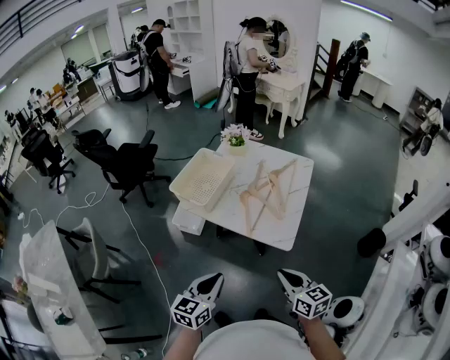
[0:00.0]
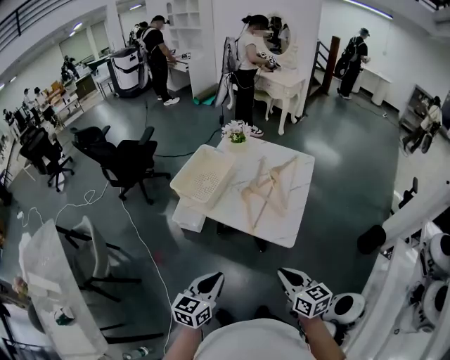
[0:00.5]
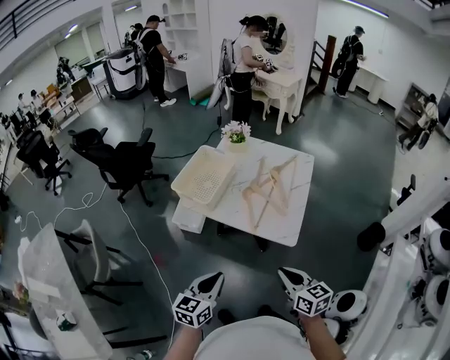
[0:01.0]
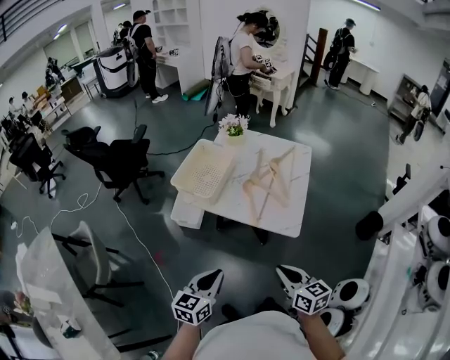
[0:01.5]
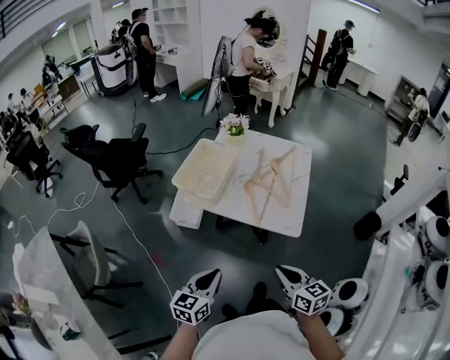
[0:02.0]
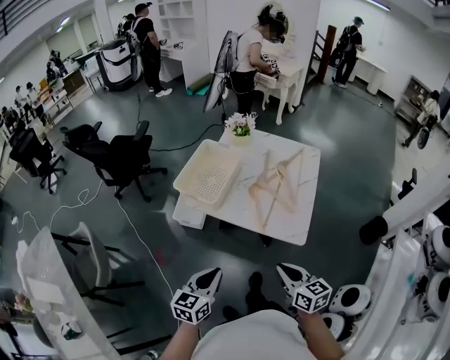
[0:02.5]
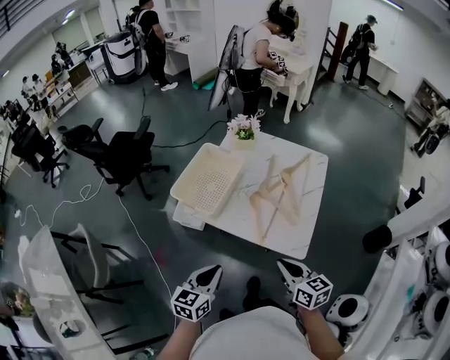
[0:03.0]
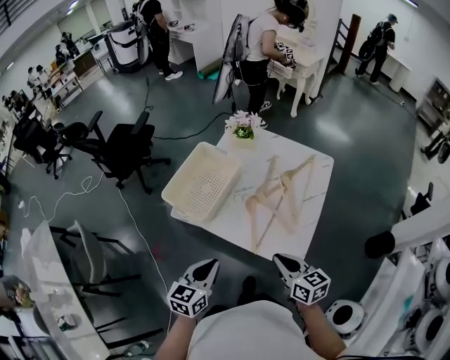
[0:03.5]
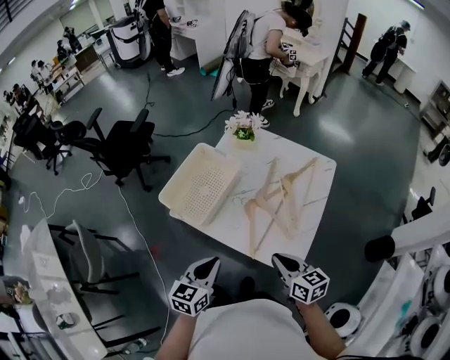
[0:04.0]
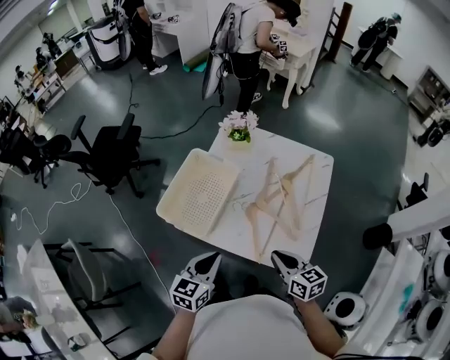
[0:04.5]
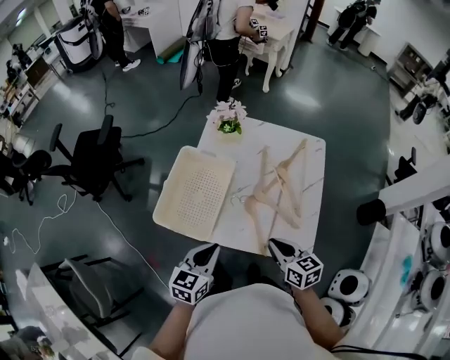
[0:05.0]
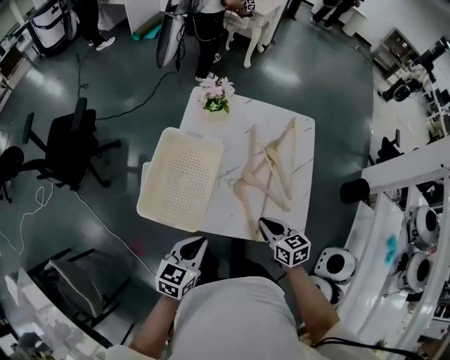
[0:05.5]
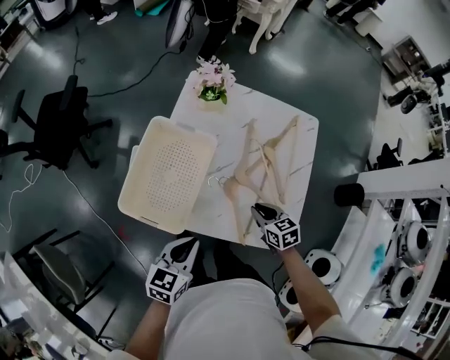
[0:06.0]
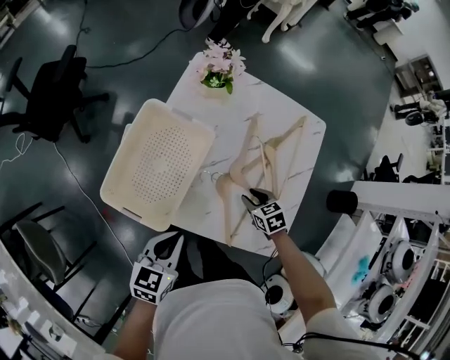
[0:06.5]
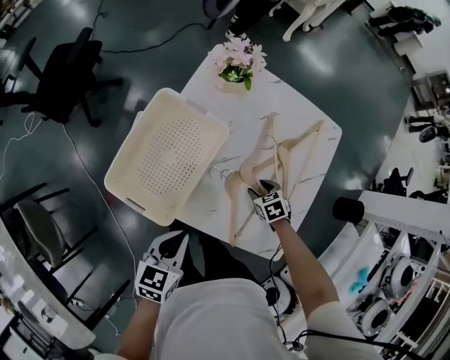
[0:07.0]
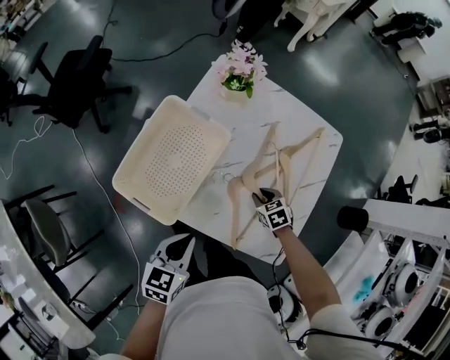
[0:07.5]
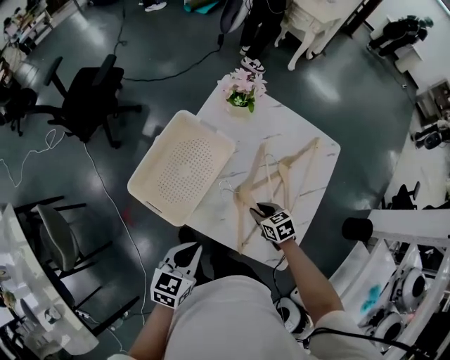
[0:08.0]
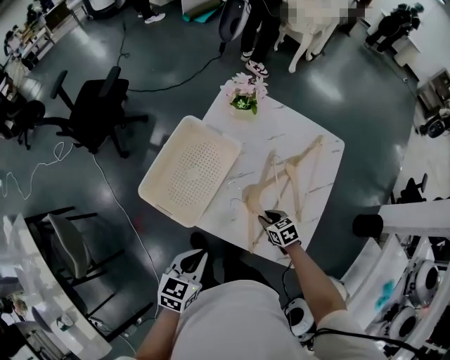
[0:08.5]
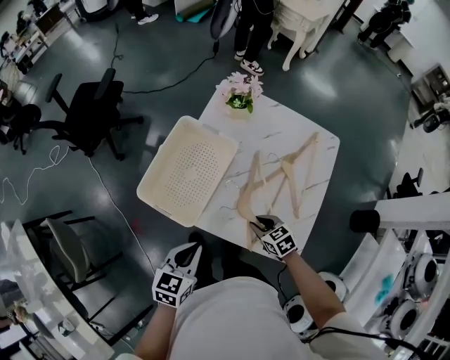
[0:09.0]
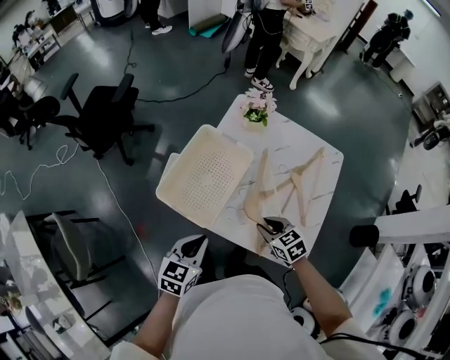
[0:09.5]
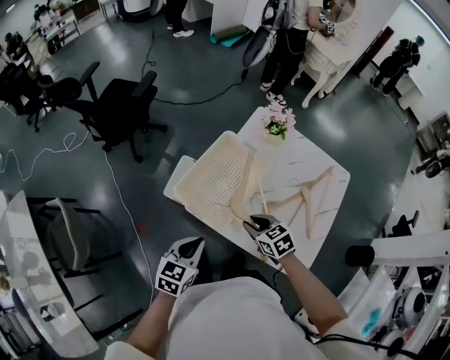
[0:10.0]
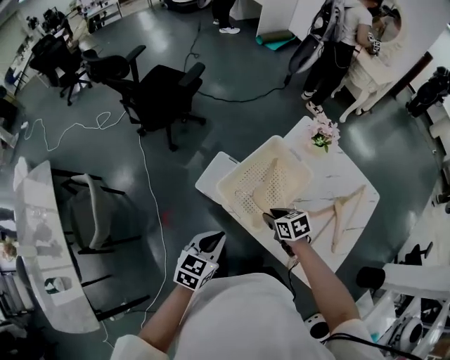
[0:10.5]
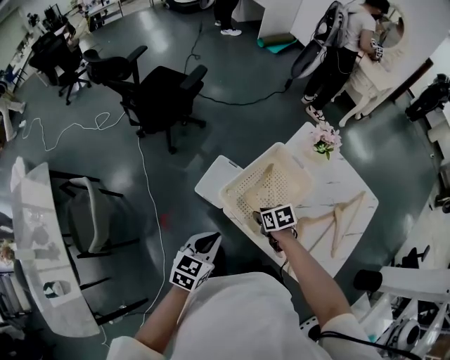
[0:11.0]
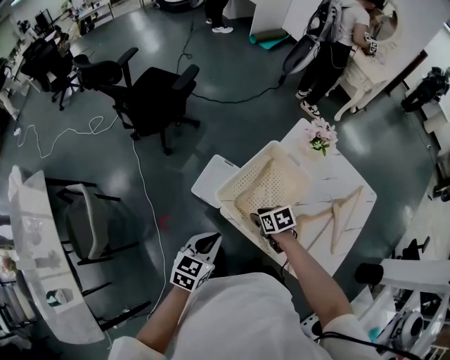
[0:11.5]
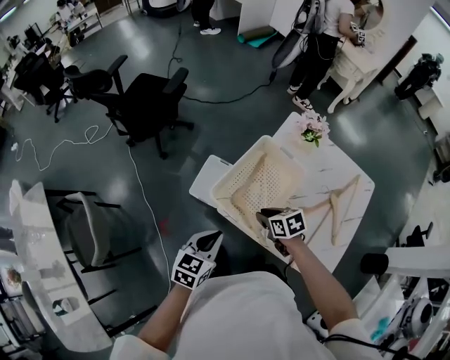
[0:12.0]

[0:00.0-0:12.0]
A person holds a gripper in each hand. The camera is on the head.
0:00.0 to 0:02.0: The two grippers go some 10 cm to the left.
0:02.0 to 0:04.0: The grippers both shift forward by roughly 25 cm.
0:04.0 to 0:06.0: The right gripper is displaced forward and downward by some 25 cm, and turns by approximately 20 degrees, while the left gripper is displaced forward, downward and to the left by approximately 15 cm, and rotates some 20 degrees.
0:06.0 to 0:08.0: The right gripper shifts approximately 5 cm downward, turns by about 20 degrees, and opens and closes again.
0:08.0 to 0:10.0: The left gripper shifts about 15 cm to the left; the right gripper travels to the left and upward by approximately 20 cm.
0:10.0 to 0:12.0: The left gripper moves to the left, about 5 cm, while the right gripper shifts approximately 10 cm to the left and forward.

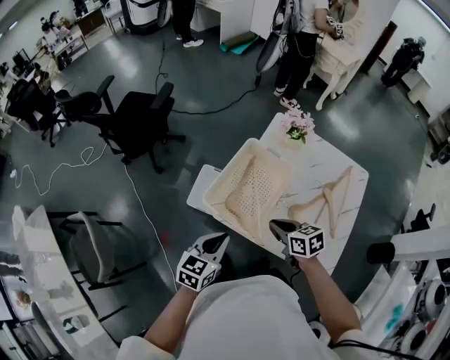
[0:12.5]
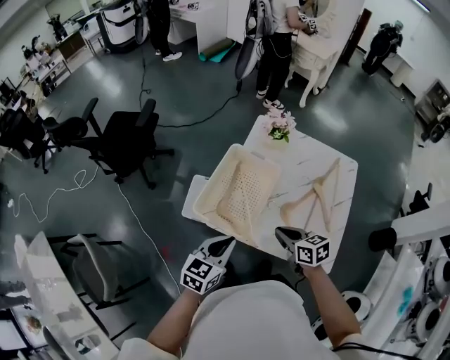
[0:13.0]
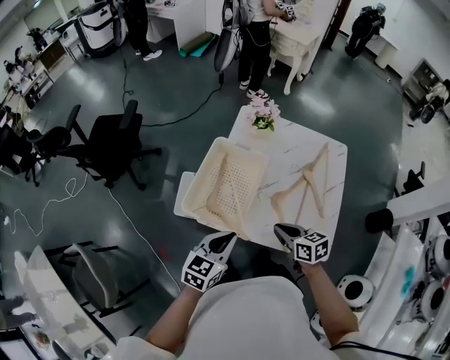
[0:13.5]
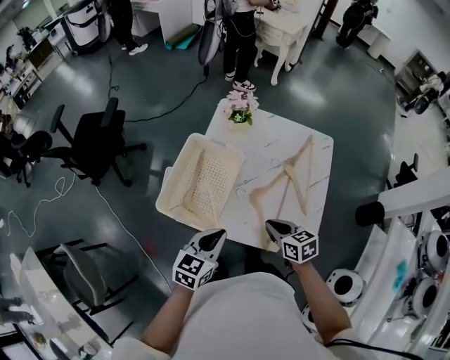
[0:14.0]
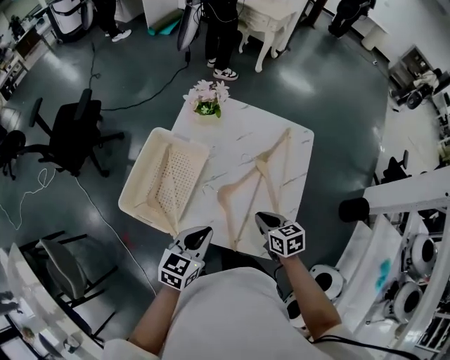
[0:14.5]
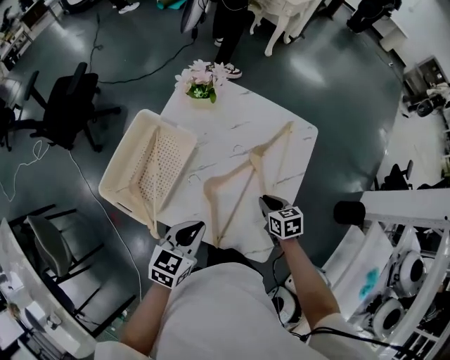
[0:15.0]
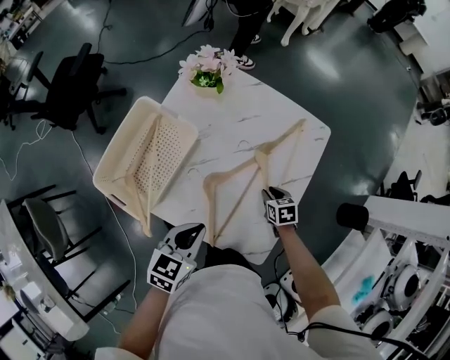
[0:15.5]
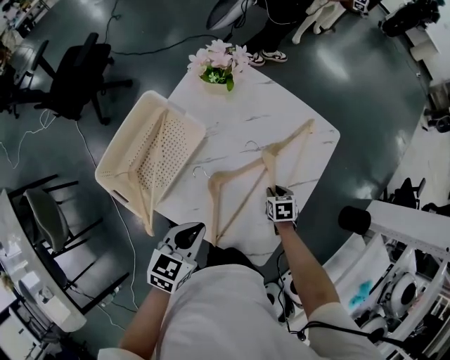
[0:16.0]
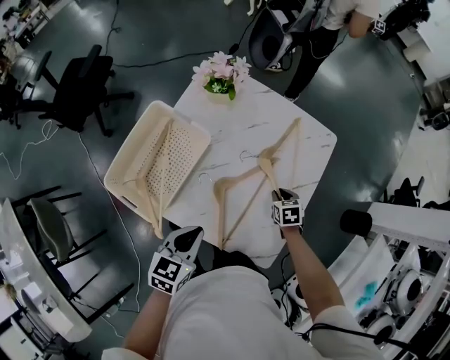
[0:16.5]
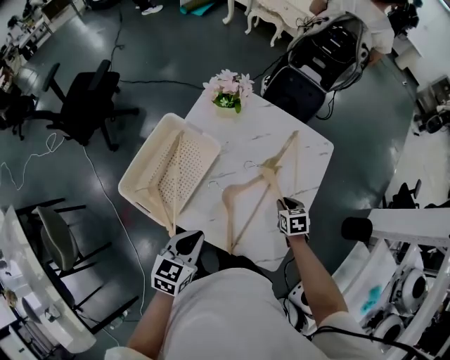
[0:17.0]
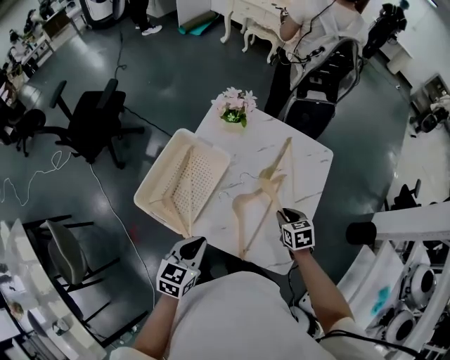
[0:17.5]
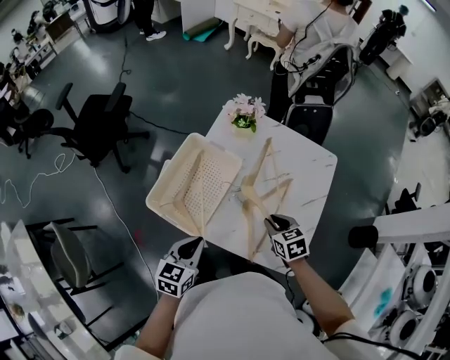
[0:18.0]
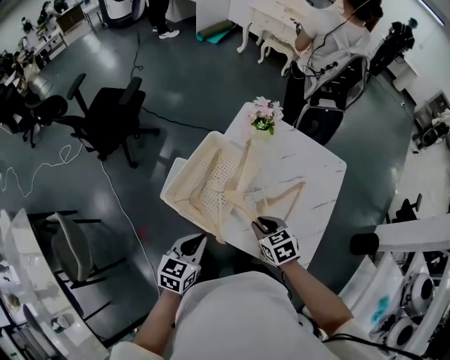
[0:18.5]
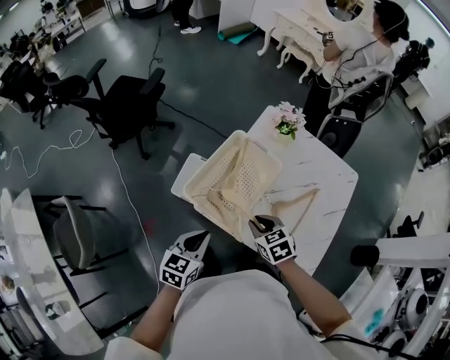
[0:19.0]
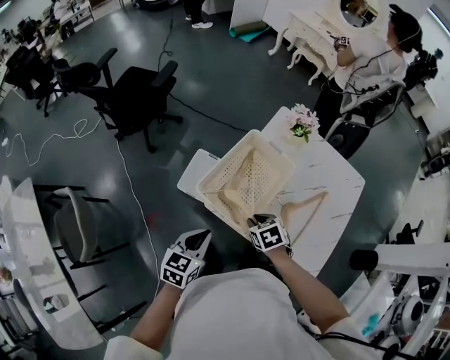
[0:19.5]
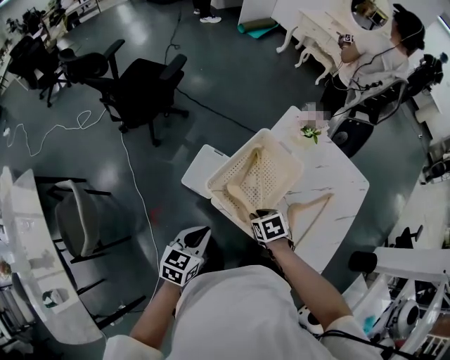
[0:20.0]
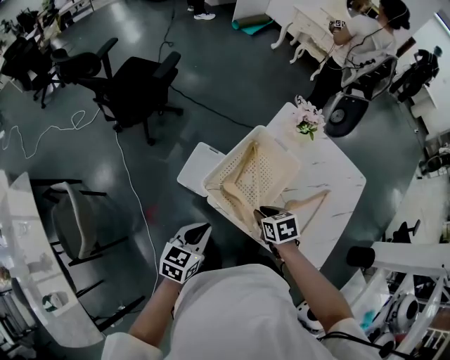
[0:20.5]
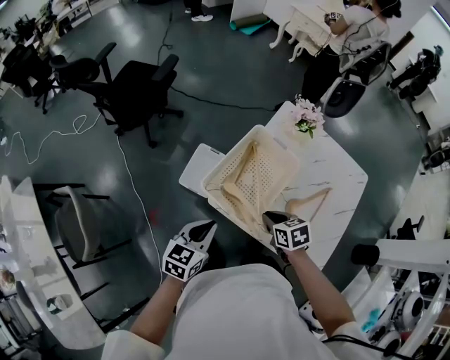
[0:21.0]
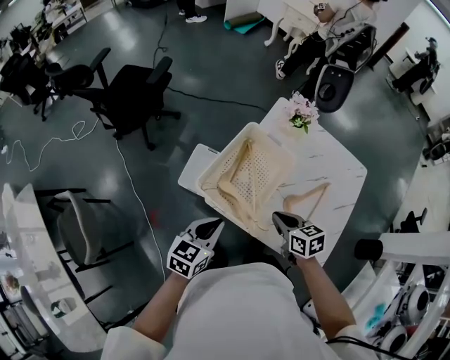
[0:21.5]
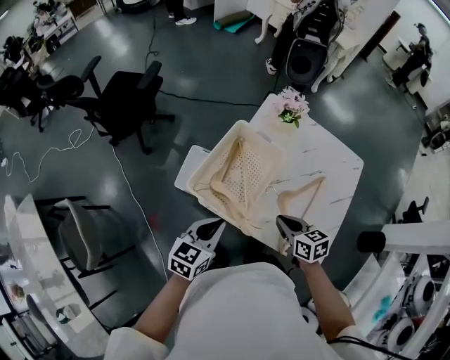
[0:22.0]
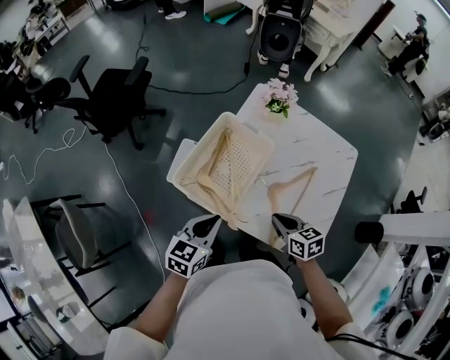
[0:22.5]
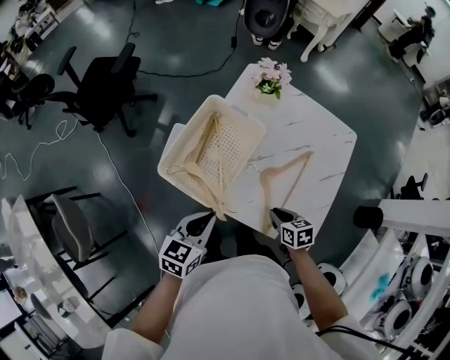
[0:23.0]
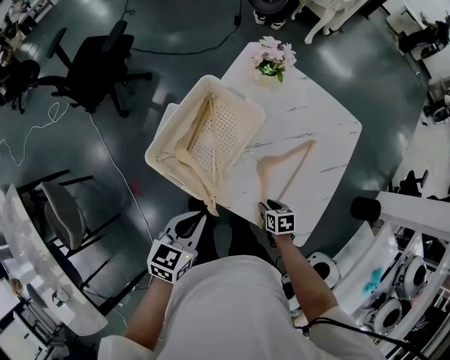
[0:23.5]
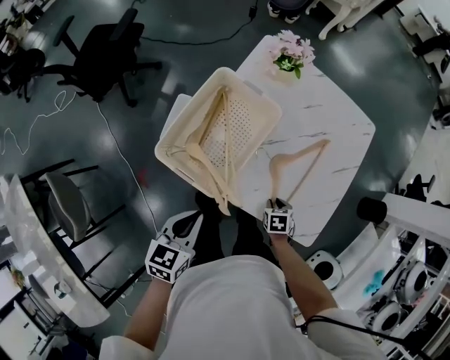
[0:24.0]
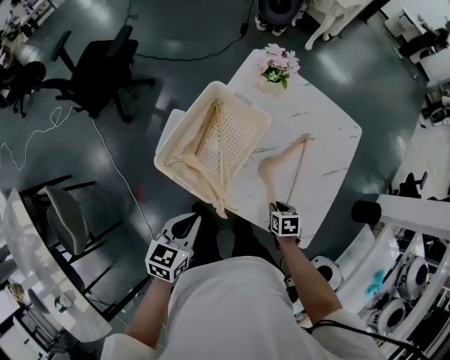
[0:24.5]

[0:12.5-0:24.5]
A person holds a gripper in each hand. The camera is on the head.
0:12.5 to 0:14.5: The grippers both shift to the right by some 25 cm.
0:14.5 to 0:16.5: The right gripper heads downward, forward and to the right, covering approximately 25 cm, and turns by roughly 20 degrees; the left gripper shifts approximately 5 cm downward.
0:16.5 to 0:18.5: The left gripper moves to the left, approximately 20 cm, while the right gripper moves to the left, upward and backward, some 35 cm, and rotates approximately 20 degrees.
0:18.5 to 0:20.5: Both grippers move to the left, approximately 15 cm.
0:20.5 to 0:22.5: The left gripper travels to the right by approximately 10 cm, while the right gripper heads to the right and backward, covering some 15 cm, and changes its angle by approximately 20 degrees.
0:22.5 to 0:24.5: The left gripper ends up roughly 5 cm from where it was. Meanwhile the right gripper goes some 20 cm downward and to the right, and turns by about 30 degrees.

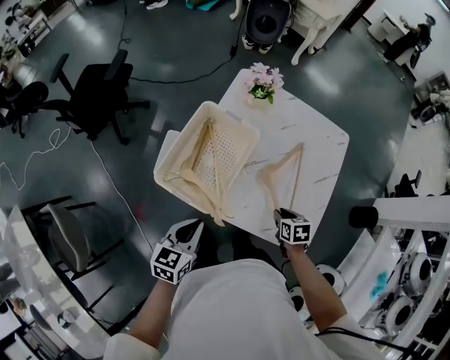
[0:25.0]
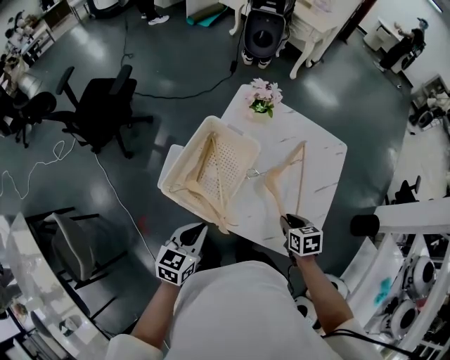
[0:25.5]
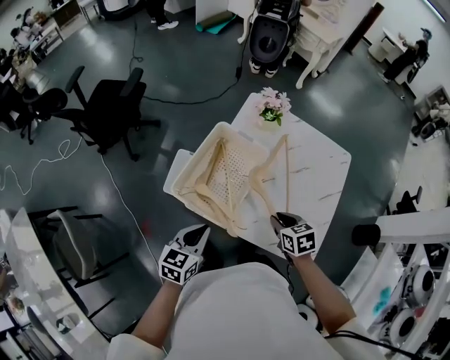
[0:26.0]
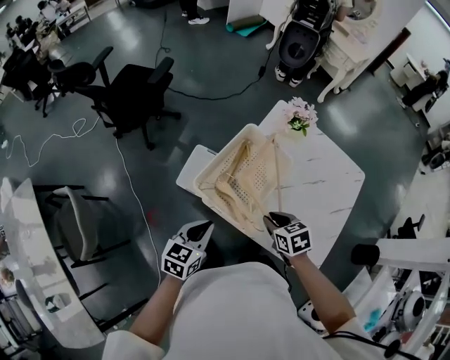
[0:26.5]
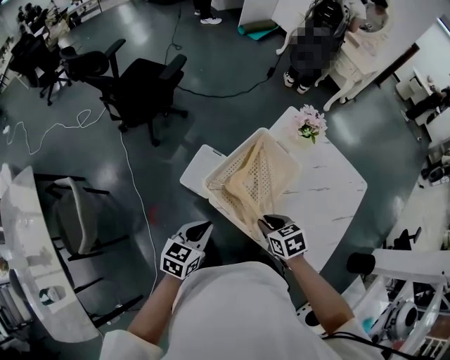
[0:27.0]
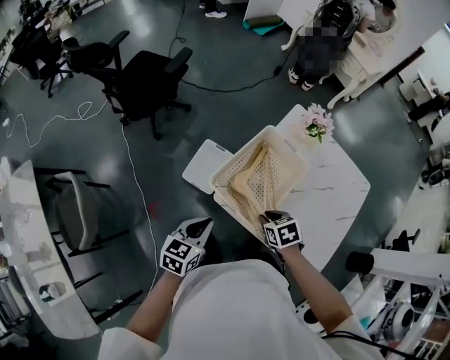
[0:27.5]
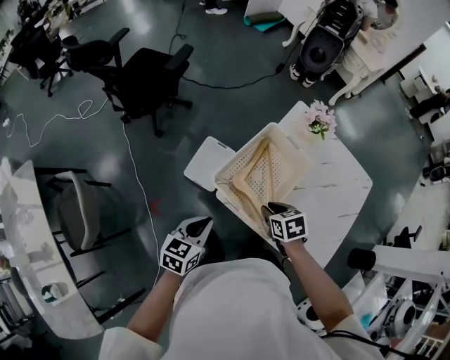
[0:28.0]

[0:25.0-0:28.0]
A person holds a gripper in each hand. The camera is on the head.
0:25.0 to 0:26.5: The left gripper heads to the left, covering roughly 10 cm. The right gripper travels to the left and upward by about 20 cm, and rotates about 30 degrees.
0:26.5 to 0:28.0: Both grippers travel together to the left, roughly 5 cm.
